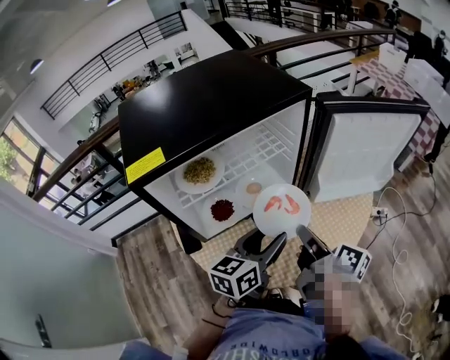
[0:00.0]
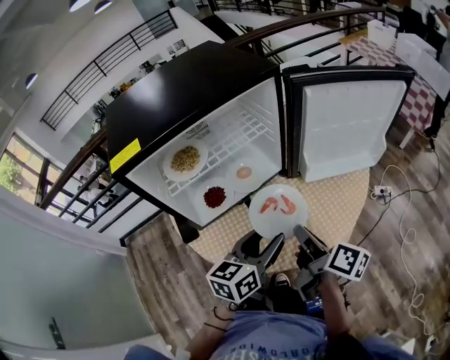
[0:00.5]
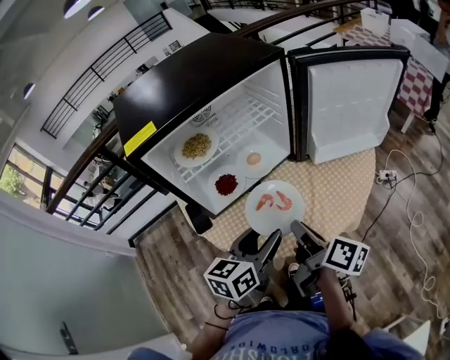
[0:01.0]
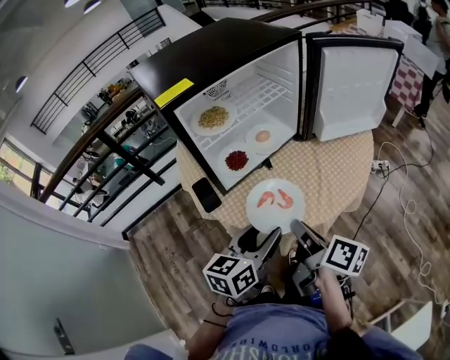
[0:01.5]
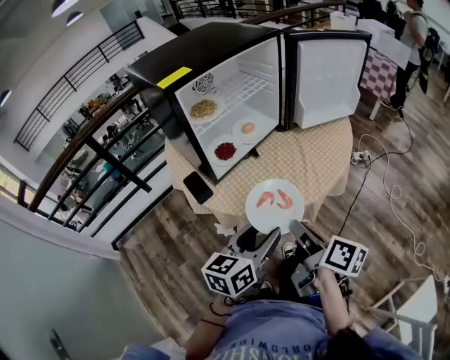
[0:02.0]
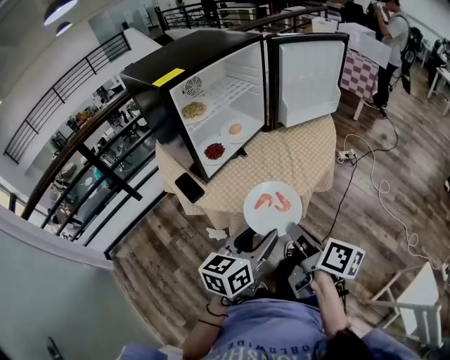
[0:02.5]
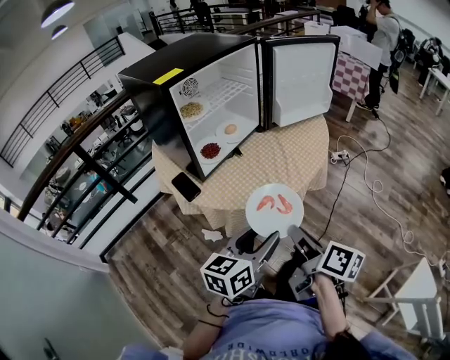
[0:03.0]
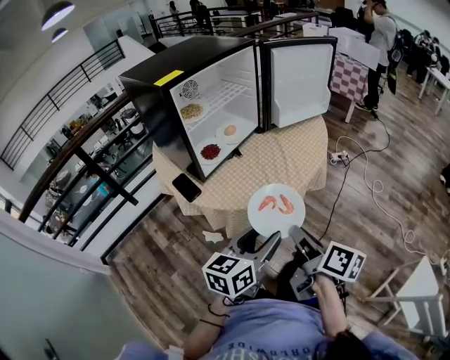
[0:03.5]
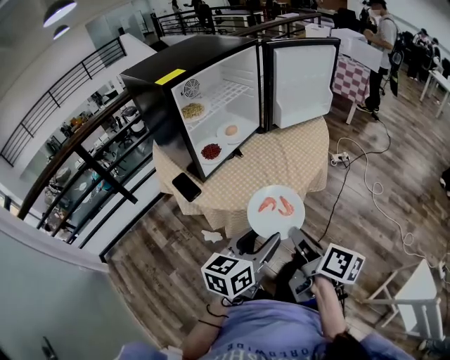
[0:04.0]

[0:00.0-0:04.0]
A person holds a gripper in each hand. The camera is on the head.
0:00.0 to 0:02.0: Both grippers move backward, about 25 cm.
0:02.0 to 0:04.0: The two grippers go approximately 10 cm backward.

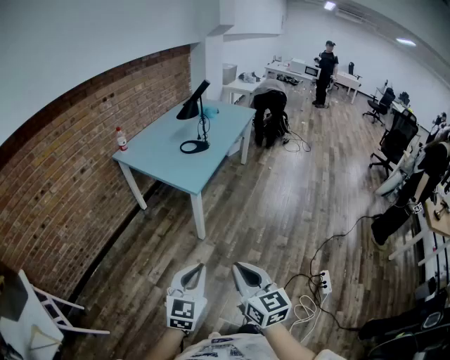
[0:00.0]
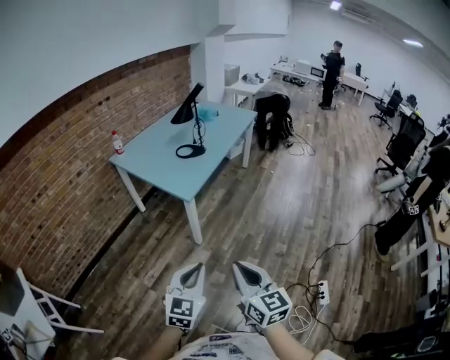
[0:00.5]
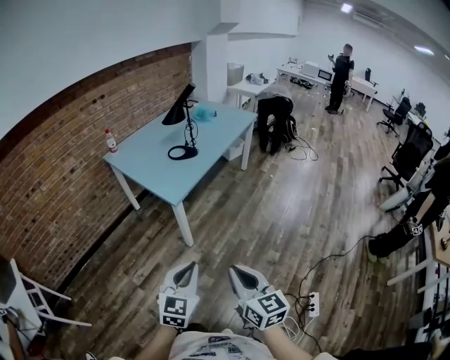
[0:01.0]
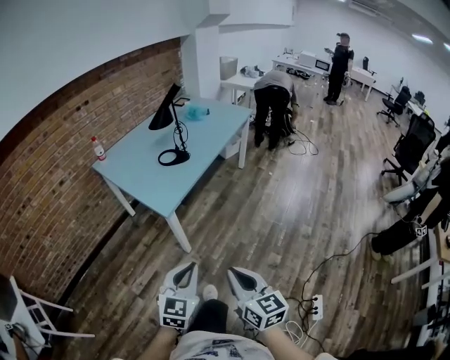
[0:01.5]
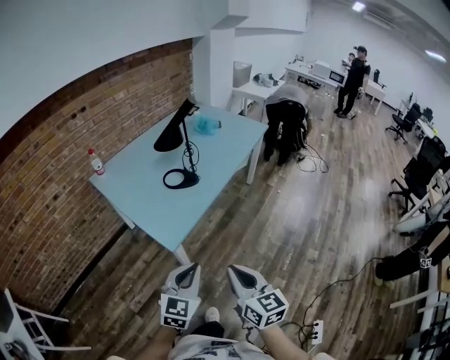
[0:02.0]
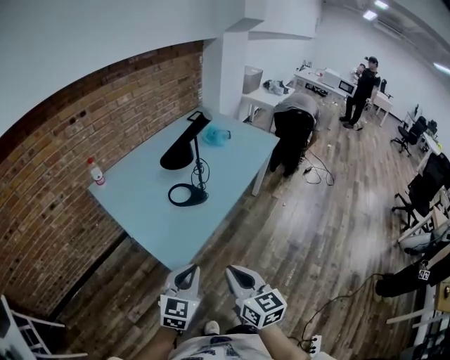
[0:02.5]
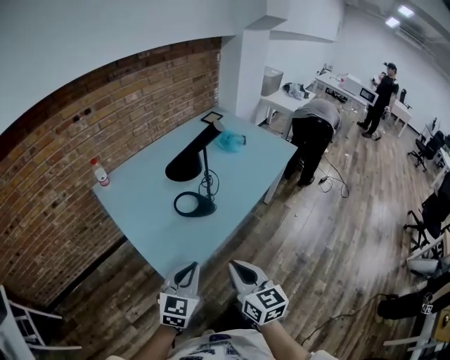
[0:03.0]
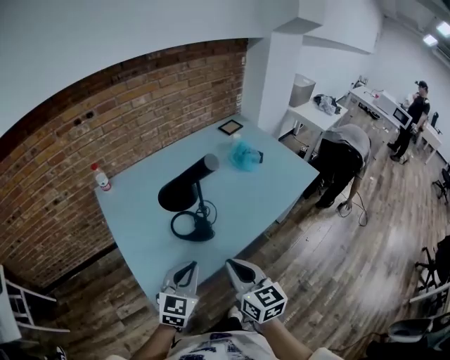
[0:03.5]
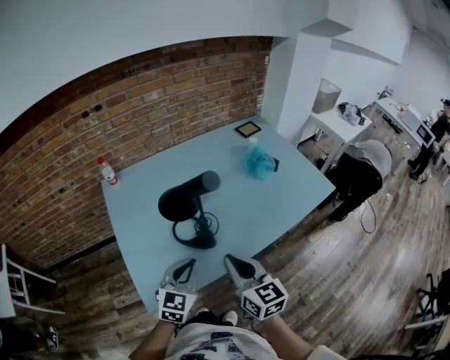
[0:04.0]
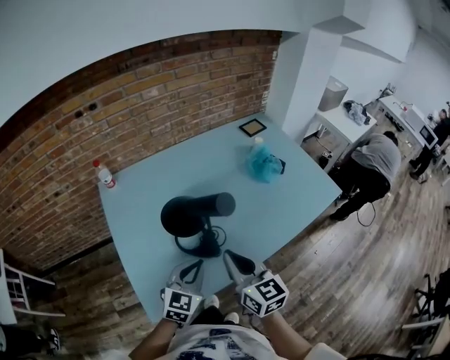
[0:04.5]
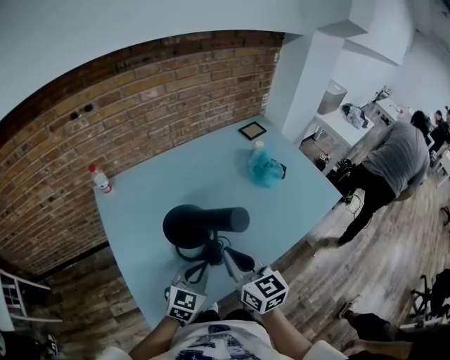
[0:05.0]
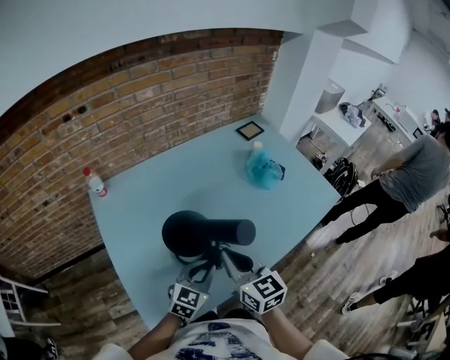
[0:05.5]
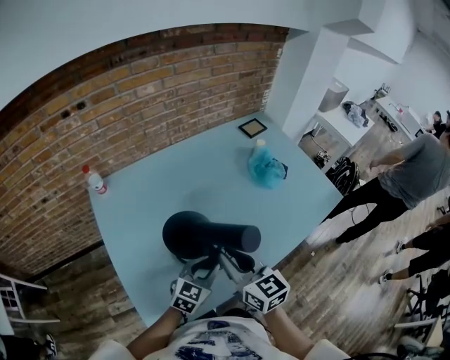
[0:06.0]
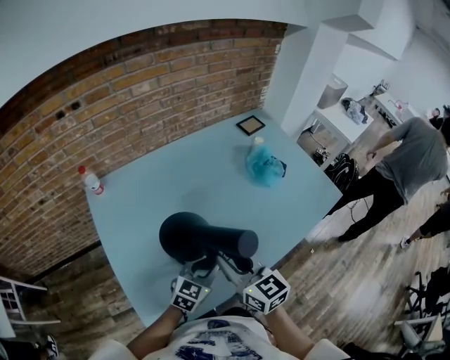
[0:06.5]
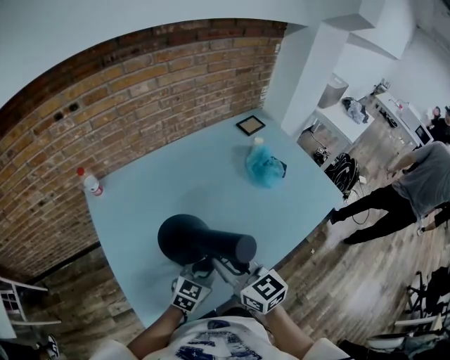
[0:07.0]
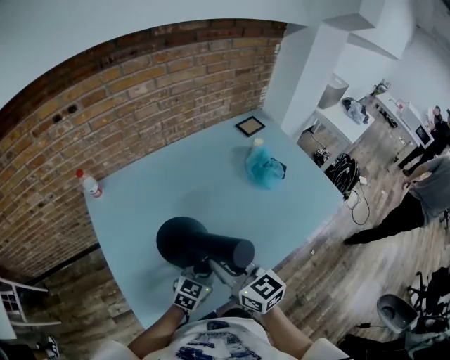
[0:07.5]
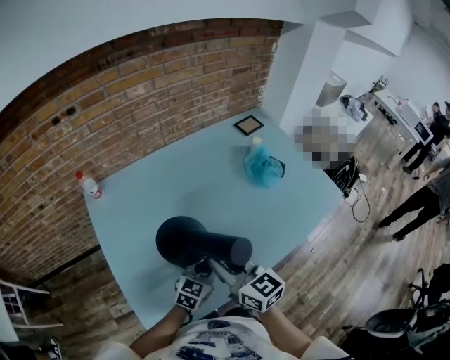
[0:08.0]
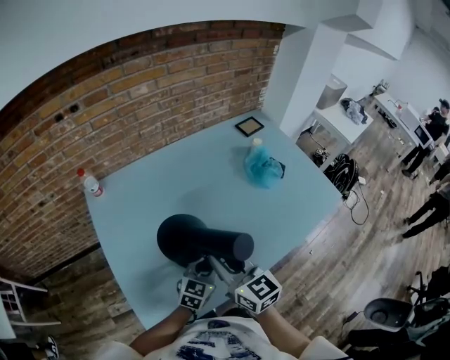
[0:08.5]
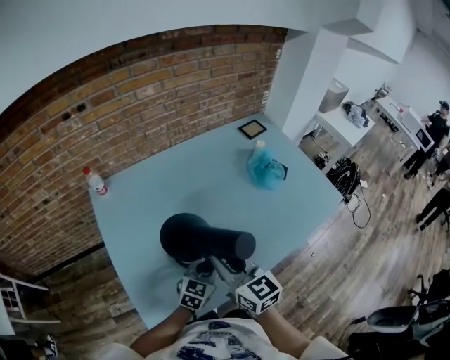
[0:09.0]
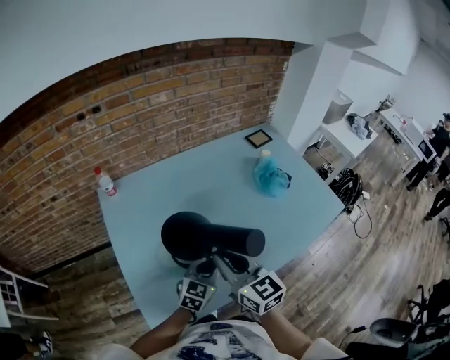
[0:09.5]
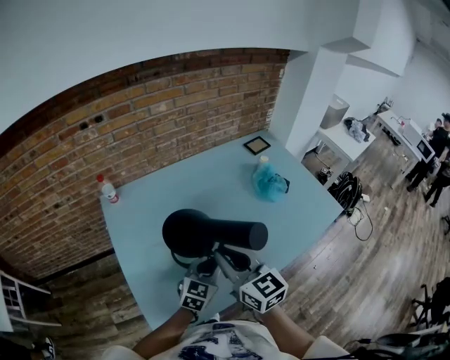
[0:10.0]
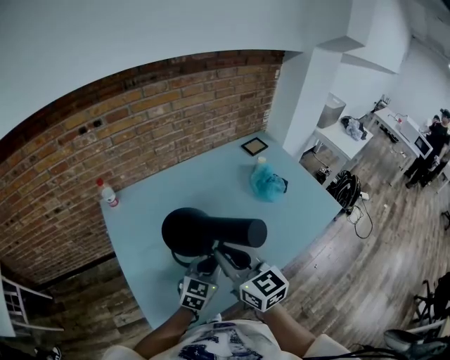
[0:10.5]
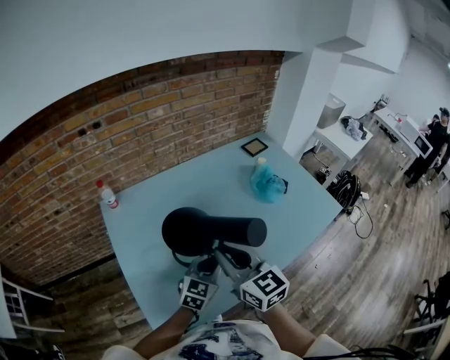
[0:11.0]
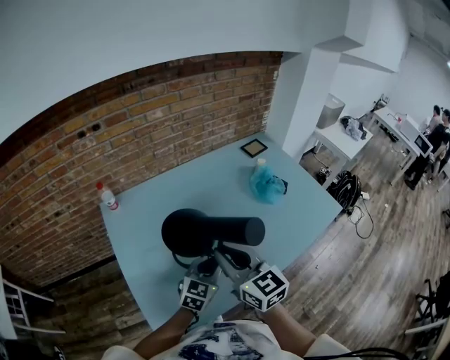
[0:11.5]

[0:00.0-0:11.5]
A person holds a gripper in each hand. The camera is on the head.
0:00.0 to 0:02.0: The two grippers travel together, forward and to the right, roughly 40 cm.
0:02.0 to 0:04.0: The two grippers travel together, approximately 50 cm. The right gripper changes its angle by some 30 degrees, while the left gripper turns by some 30 degrees.
0:04.0 to 0:06.0: The right gripper goes about 15 cm forward and to the left. Meanwhile the left gripper travels forward and downward by roughly 15 cm.
0:06.0 to 0:07.5: There are only small adjustments of the grippers.
0:07.5 to 0:09.5: The right gripper moves approximately 5 cm.
0:09.5 to 0:11.5: The grippers stay close to where they were, moving slightly.

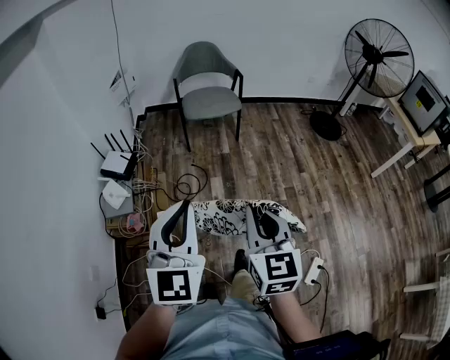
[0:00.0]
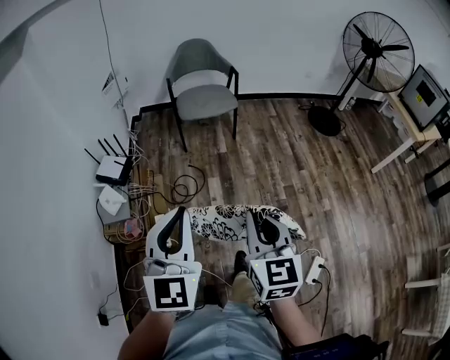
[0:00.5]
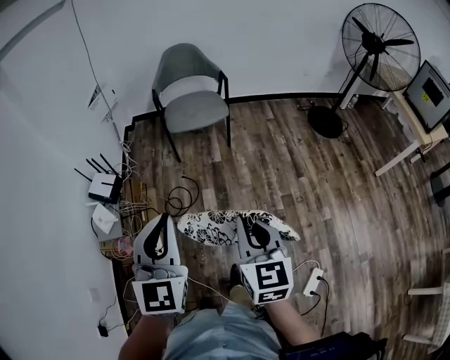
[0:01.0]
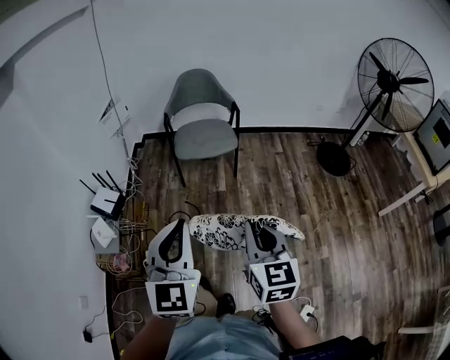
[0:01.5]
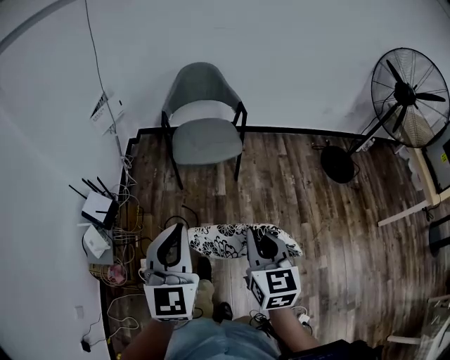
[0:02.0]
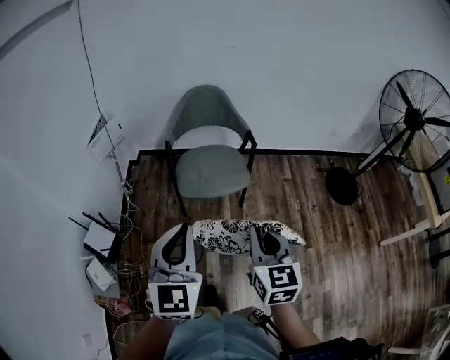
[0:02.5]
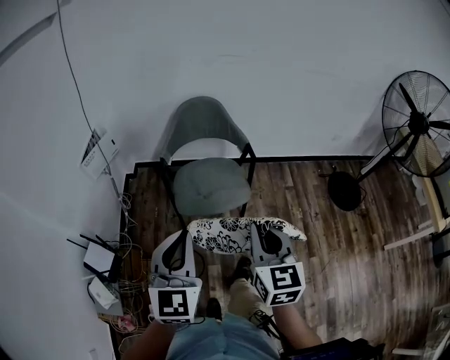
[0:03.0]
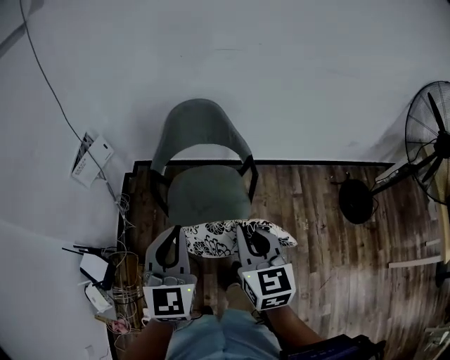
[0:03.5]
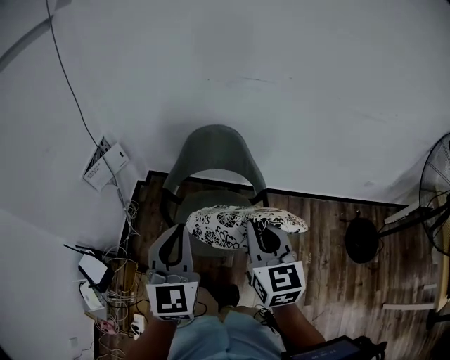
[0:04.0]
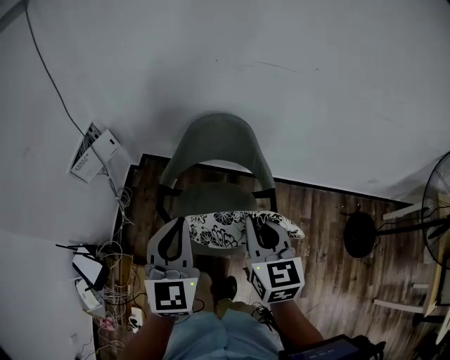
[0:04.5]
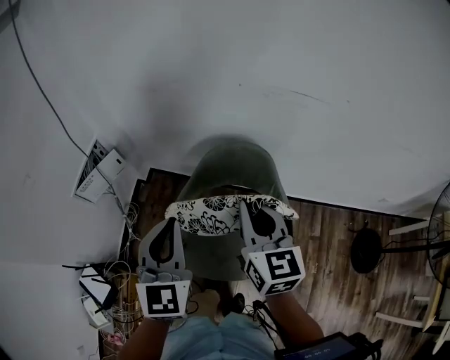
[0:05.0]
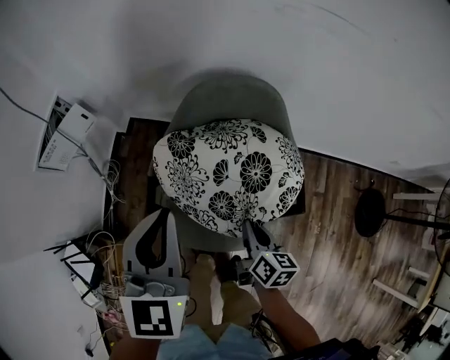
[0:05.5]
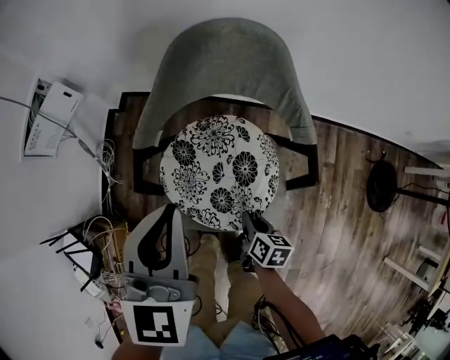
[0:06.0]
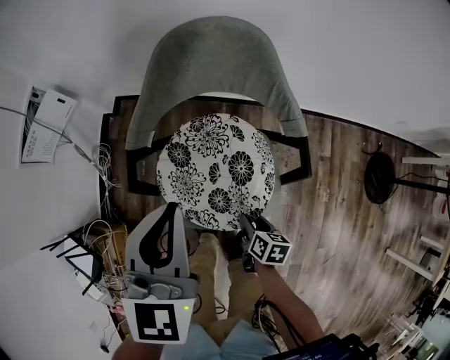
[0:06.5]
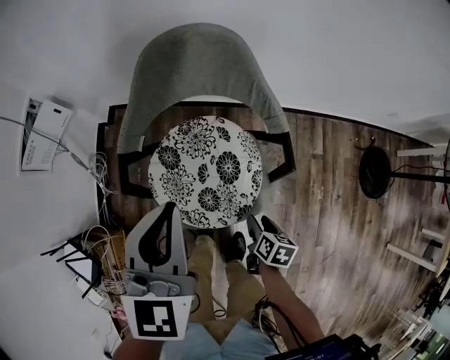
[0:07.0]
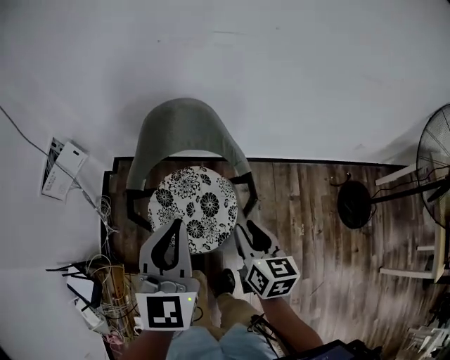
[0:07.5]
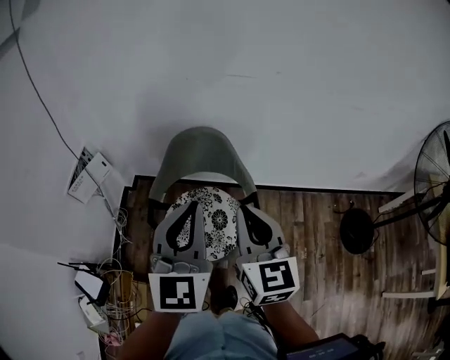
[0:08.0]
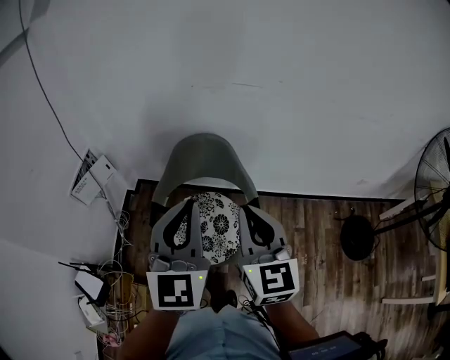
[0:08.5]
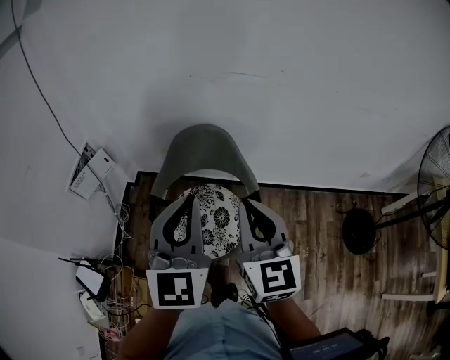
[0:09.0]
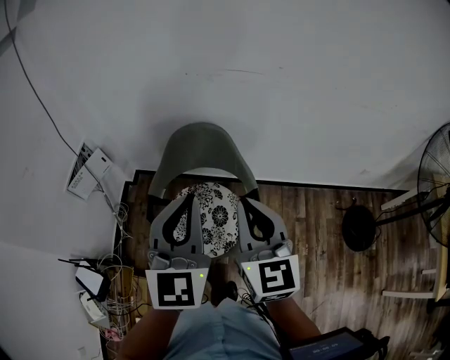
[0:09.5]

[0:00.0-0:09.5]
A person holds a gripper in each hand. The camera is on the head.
0:00.0 to 0:02.0: The grippers both shift forward by roughly 35 cm.
0:02.0 to 0:04.0: The pair of grippers is taken forward, some 50 cm.
0:04.0 to 0:05.5: The right gripper heads downward and forward, covering approximately 40 cm, and turns by roughly 40 degrees. Meanwhile the left gripper is displaced forward and downward by roughly 25 cm.
0:05.5 to 0:07.5: The right gripper shifts roughly 20 cm upward, to the right and backward, and opens, while the left gripper is displaced to the right, backward and upward by about 20 cm.
0:07.5 to 0:09.5: The right gripper goes roughly 25 cm upward, turns by roughly 30 degrees, and closes; the left gripper moves upward, roughly 15 cm.

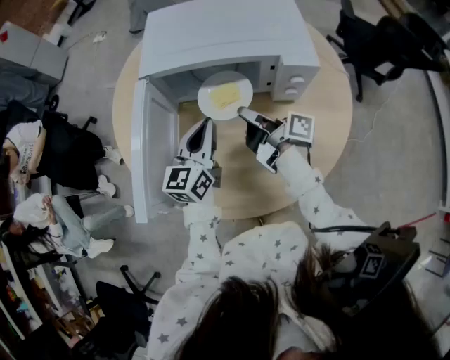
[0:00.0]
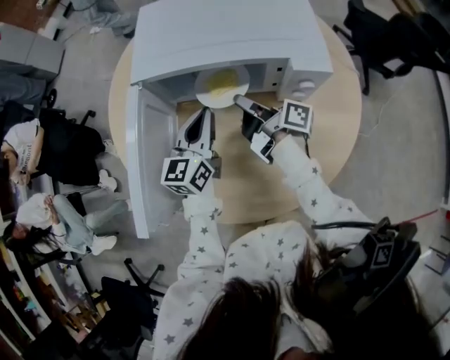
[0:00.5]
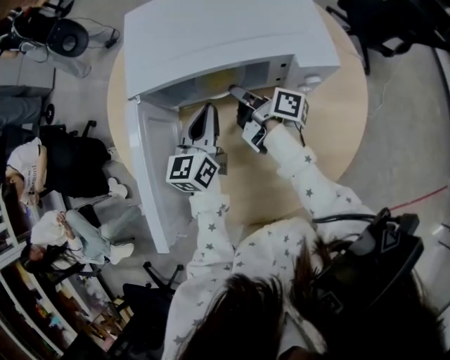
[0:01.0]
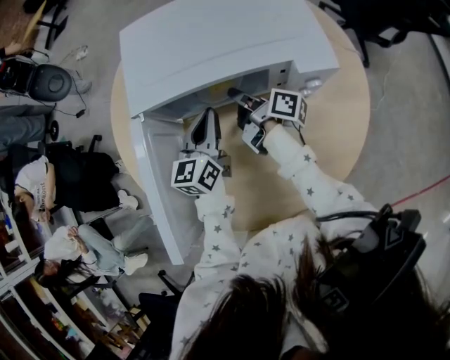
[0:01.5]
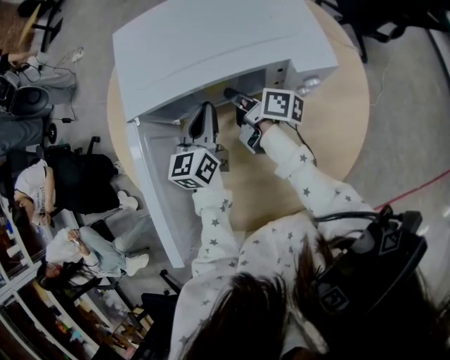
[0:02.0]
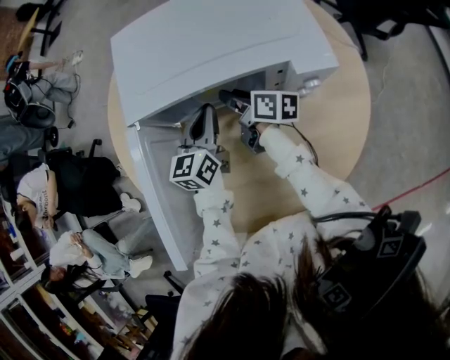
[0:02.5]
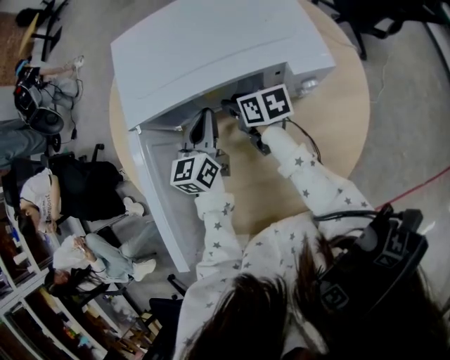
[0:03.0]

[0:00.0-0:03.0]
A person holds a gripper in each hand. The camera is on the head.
0:00.0 to 0:01.5: Both grippers move forward, about 10 cm.
0:01.5 to 0:03.0: The right gripper turns by some 50 degrees, and opens its fingers.
